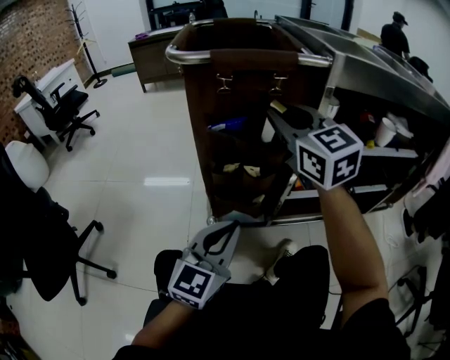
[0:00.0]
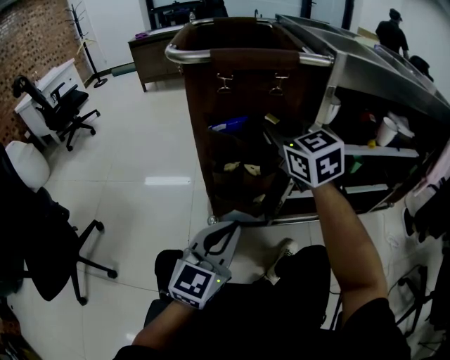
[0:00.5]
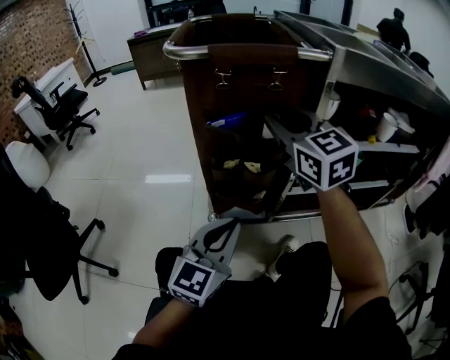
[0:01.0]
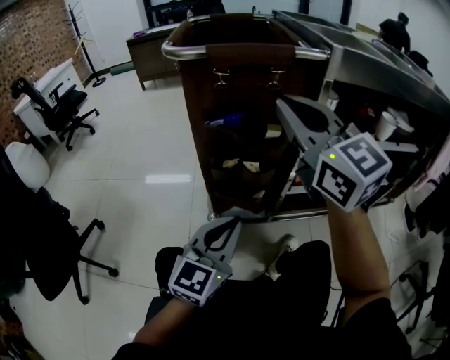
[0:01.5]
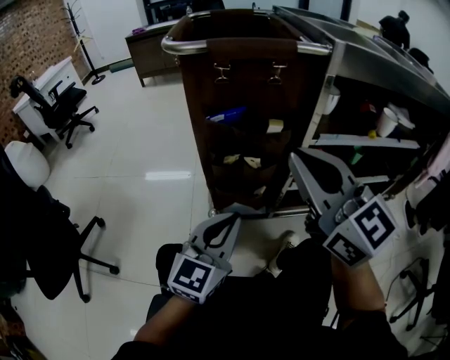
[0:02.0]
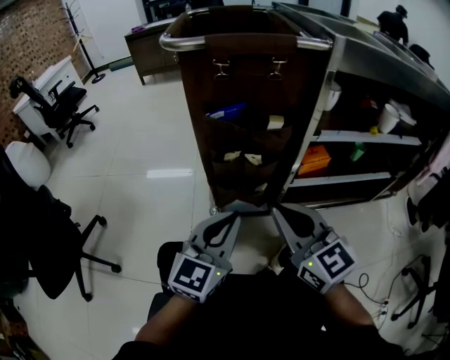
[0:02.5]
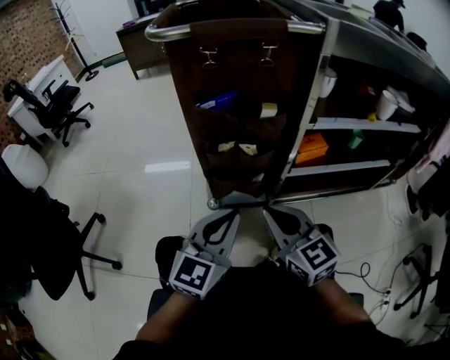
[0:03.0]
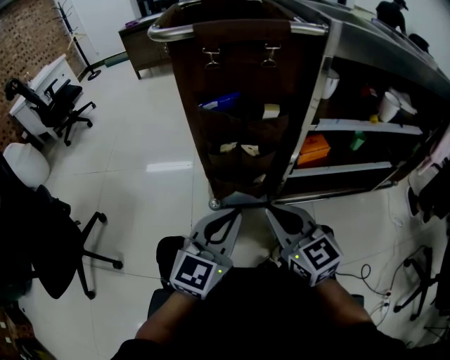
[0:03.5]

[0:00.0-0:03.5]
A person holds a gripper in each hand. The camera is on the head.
0:00.0 to 0:02.0: The right gripper is displaced backward by about 15 cm.
0:02.0 to 0:03.5: The right gripper shifts some 20 cm downward.

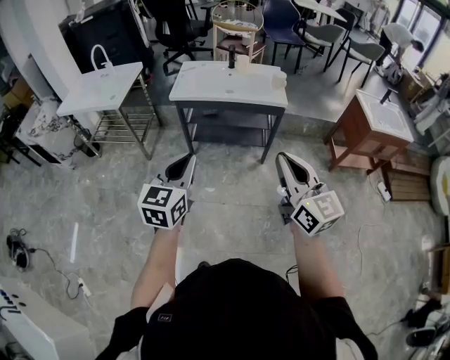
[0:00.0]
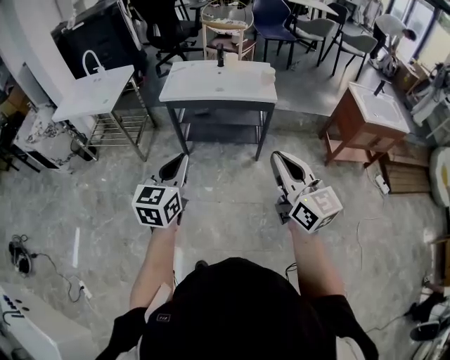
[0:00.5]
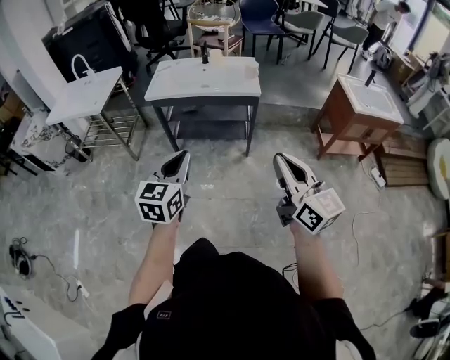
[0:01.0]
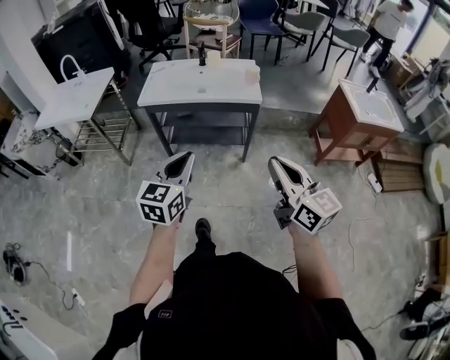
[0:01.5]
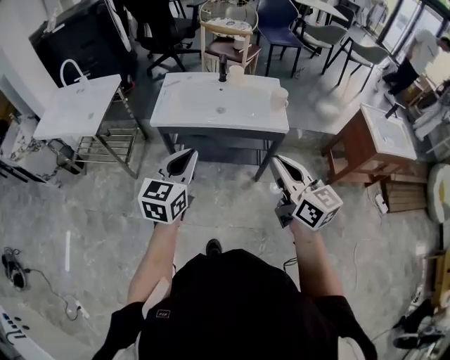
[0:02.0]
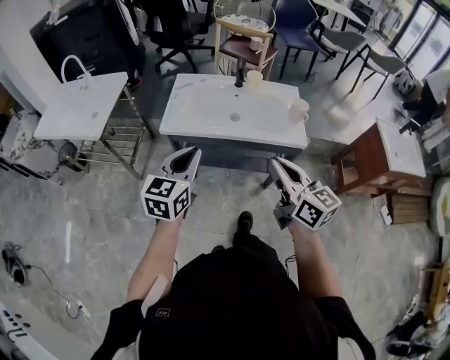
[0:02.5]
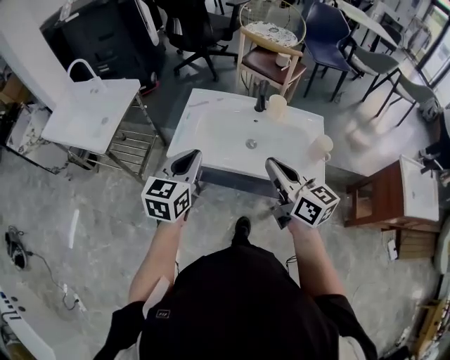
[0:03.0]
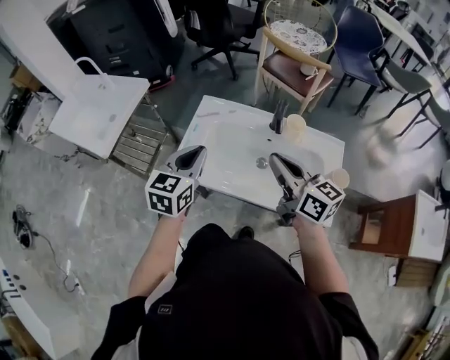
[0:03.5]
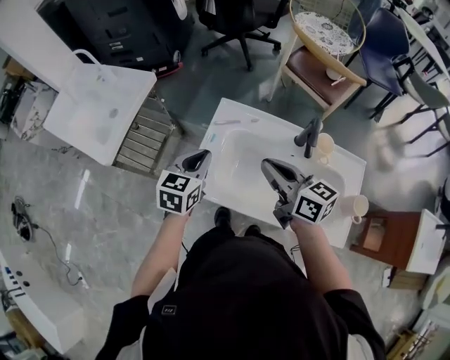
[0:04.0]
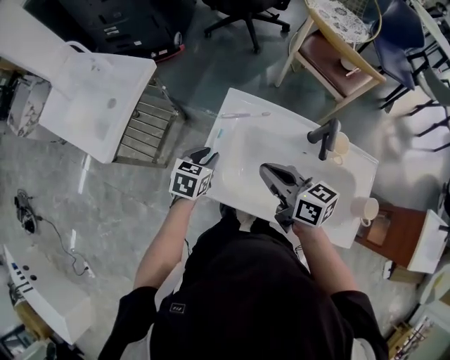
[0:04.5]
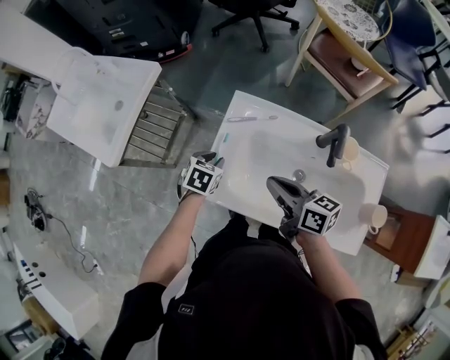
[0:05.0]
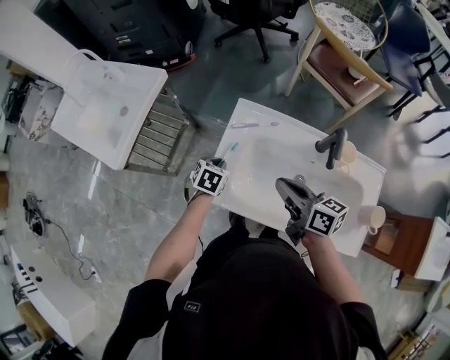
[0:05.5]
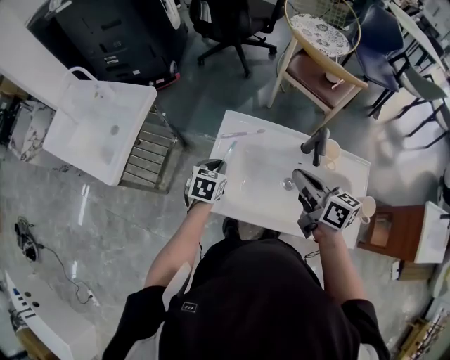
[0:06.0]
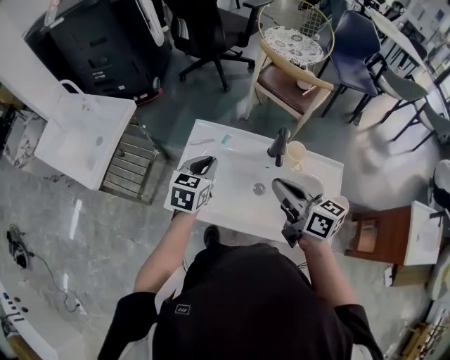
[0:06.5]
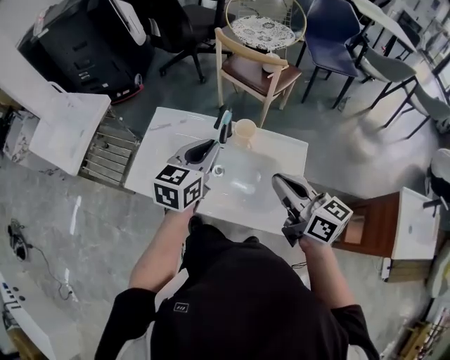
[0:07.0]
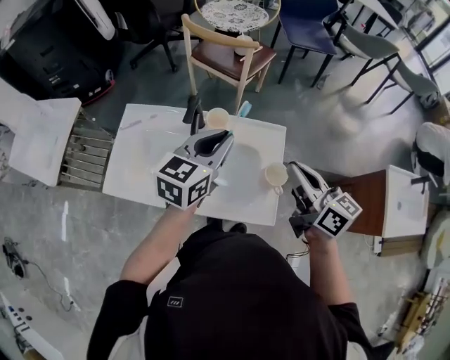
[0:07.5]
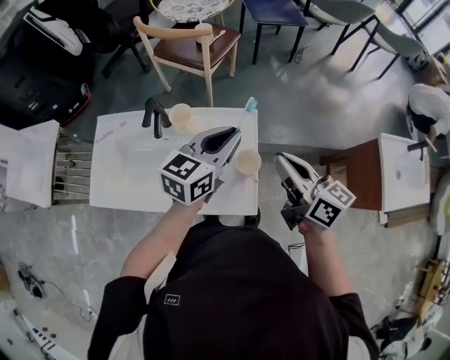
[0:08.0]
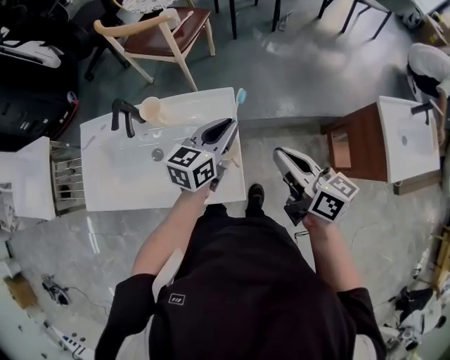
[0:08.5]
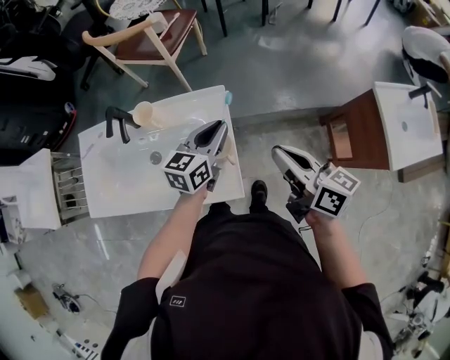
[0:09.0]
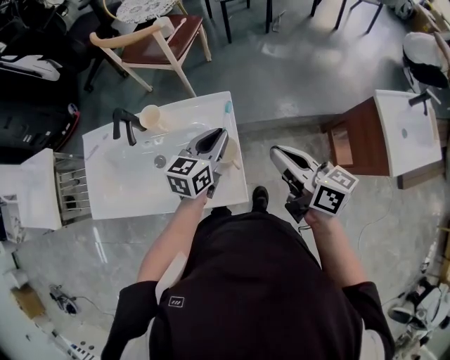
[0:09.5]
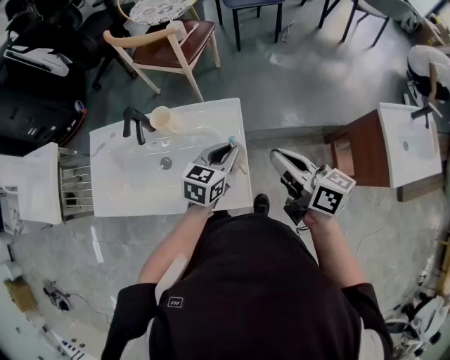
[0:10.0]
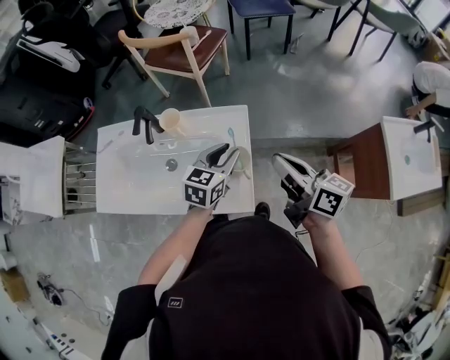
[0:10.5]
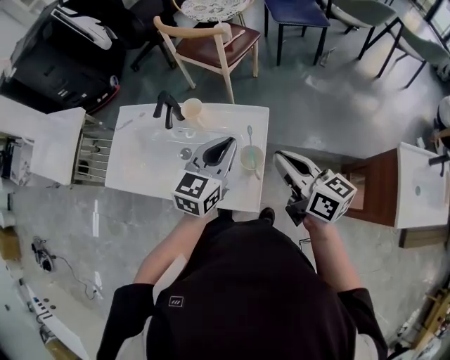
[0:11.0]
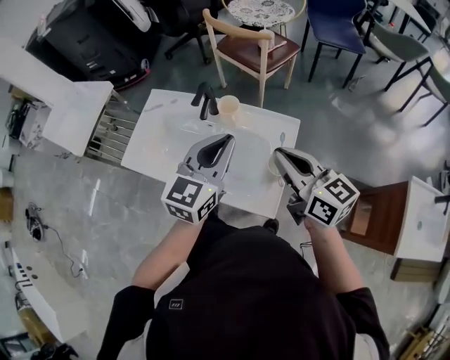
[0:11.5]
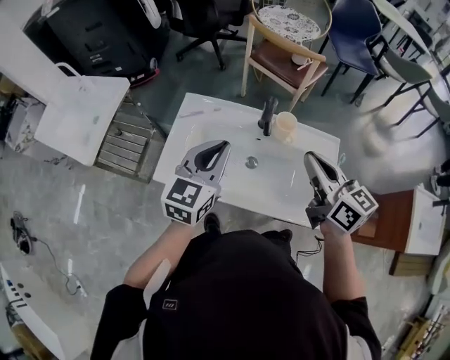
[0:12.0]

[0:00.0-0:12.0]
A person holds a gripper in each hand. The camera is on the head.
0:00.0 to 0:02.0: Both grippers travel together forward, roughly 25 cm.
0:02.0 to 0:04.0: The pair of grippers is taken forward, about 60 cm. The left gripper turns by approximately 20 degrees, while the right gripper changes its angle by roughly 30 degrees.
0:04.0 to 0:06.0: The left gripper is displaced downward by roughly 10 cm, while the right gripper is displaced to the right by approximately 5 cm, and reaches roughly 10 cm downward, then returns.
0:06.0 to 0:08.0: The pair of grippers is taken to the right, about 50 cm. The left gripper tips its fingers upward by about 30 degrees.
0:08.0 to 0:10.0: The left gripper is displaced downward and to the right by roughly 15 cm, while the right gripper is displaced to the right by some 5 cm.
0:10.0 to 0:12.0: The two grippers go some 35 cm to the left. The right gripper changes its angle by roughly 20 degrees, while the left gripper turns by some 30 degrees.

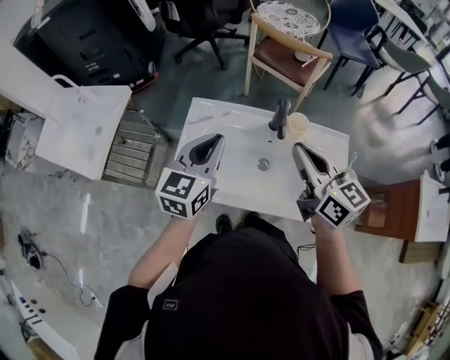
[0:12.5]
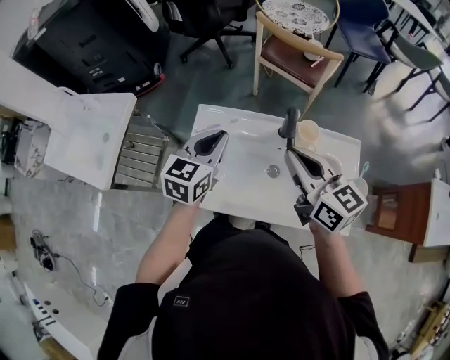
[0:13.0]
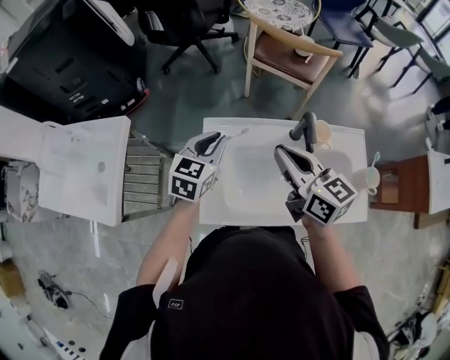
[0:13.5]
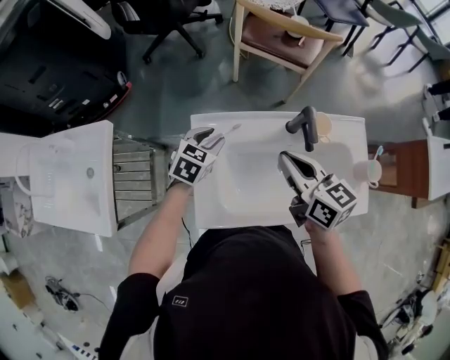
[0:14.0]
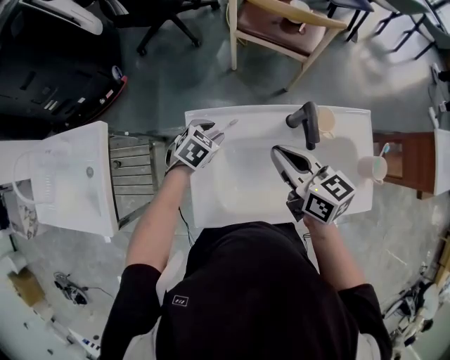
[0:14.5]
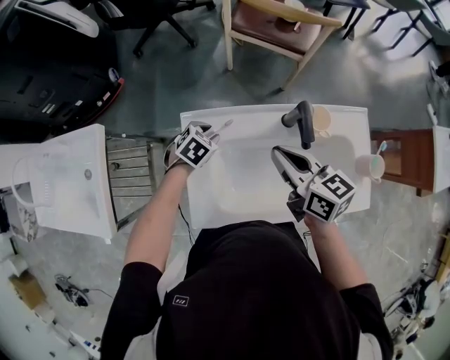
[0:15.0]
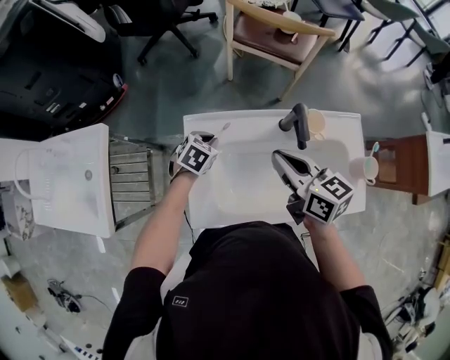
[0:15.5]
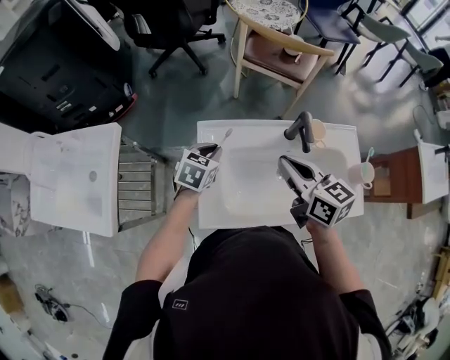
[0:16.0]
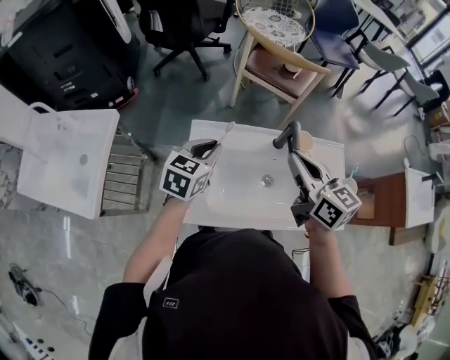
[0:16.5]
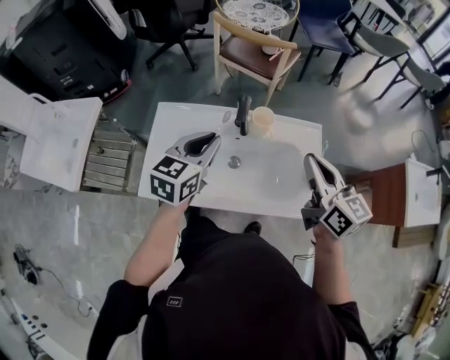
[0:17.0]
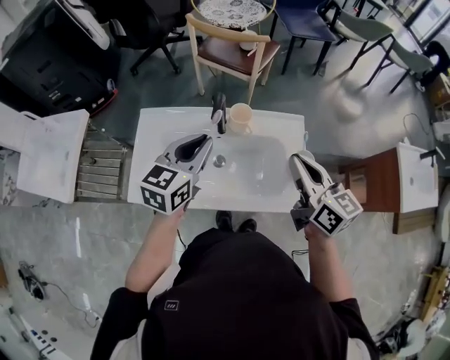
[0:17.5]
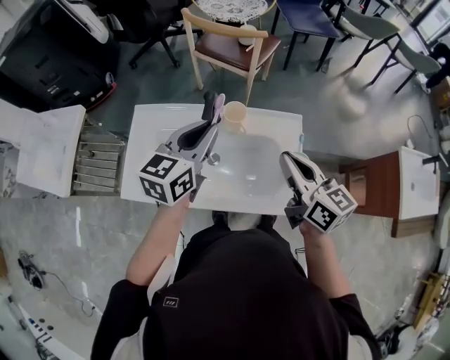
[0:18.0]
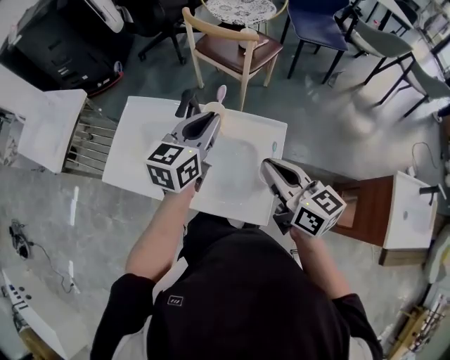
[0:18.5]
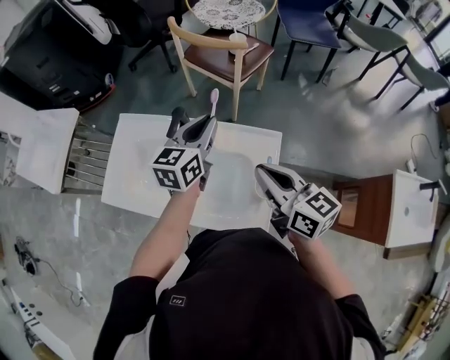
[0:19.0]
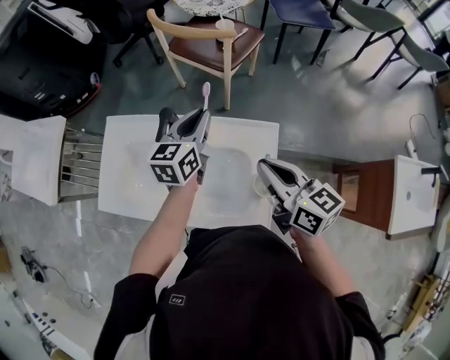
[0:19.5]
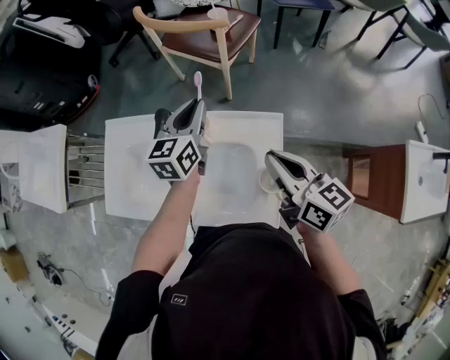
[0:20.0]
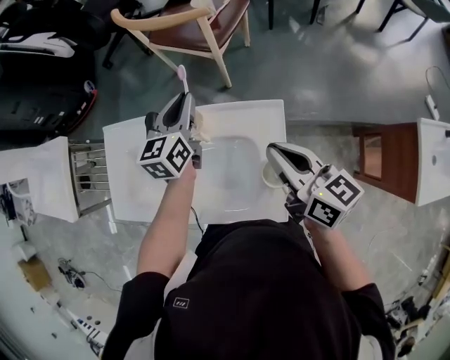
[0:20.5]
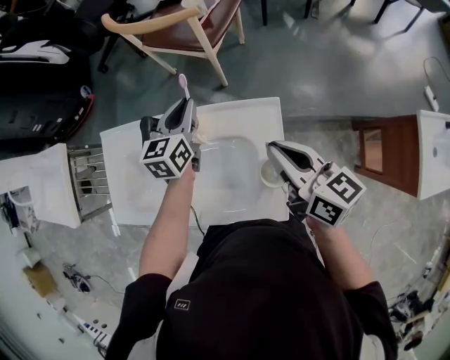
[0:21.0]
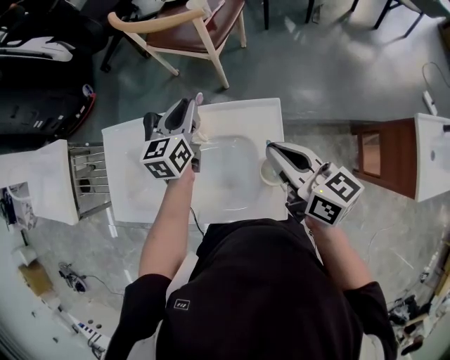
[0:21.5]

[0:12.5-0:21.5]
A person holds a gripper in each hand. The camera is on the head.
0:12.5 to 0:14.5: The left gripper is displaced downward and forward by about 30 cm, angles its fingers downward, by some 40 degrees, and opens its fingers. The right gripper is displaced to the left, forward and downward by roughly 20 cm.
0:14.5 to 0:17.0: The right gripper is displaced to the right by about 30 cm; the left gripper is displaced upward, to the right and backward by some 35 cm, tips its fingers upward by some 40 degrees, and closes.
0:17.0 to 0:19.5: The right gripper moves to the right and forward, roughly 15 cm. The left gripper shifts about 25 cm to the right and forward.
0:19.5 to 0:21.5: The left gripper shifts some 5 cm downward.

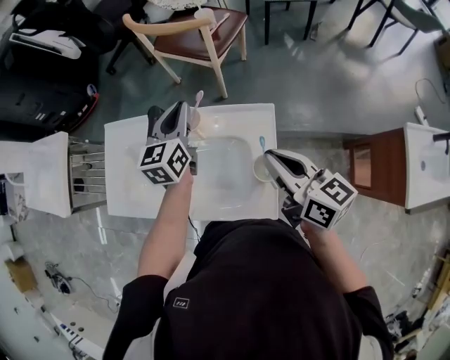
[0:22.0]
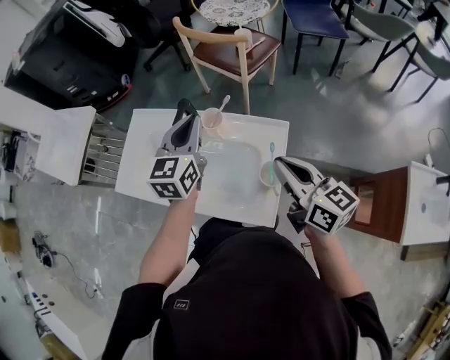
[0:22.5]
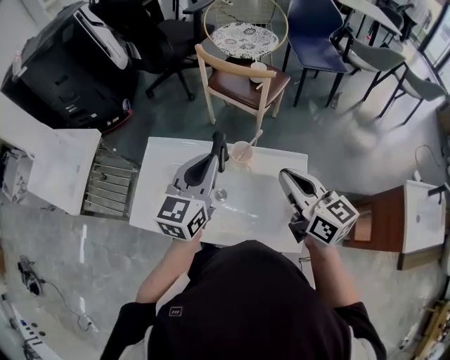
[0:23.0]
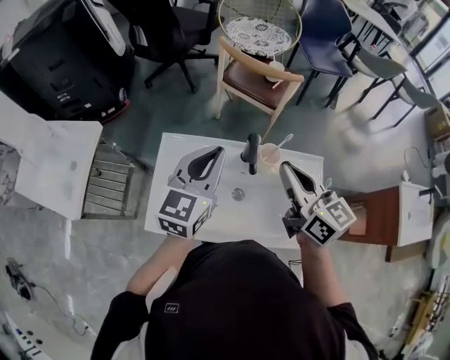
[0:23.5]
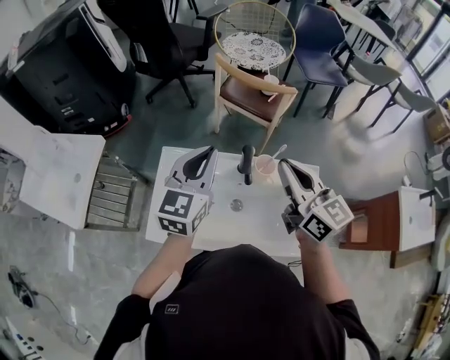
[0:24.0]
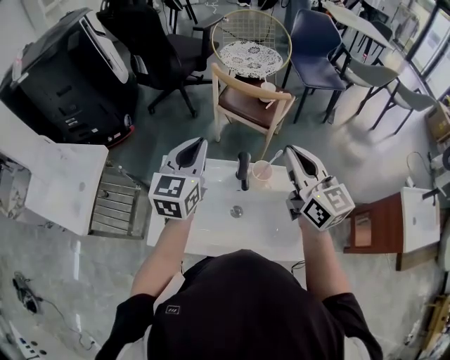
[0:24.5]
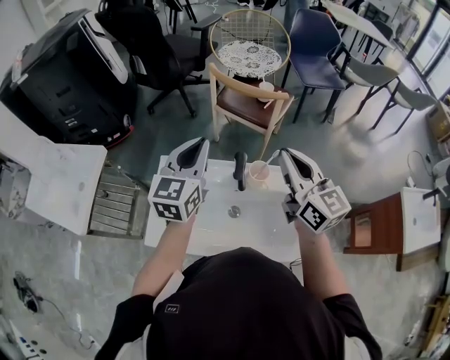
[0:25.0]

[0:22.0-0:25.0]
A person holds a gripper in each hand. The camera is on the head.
0:22.0 to 0:23.5: The right gripper heads to the left, covering roughly 25 cm. Meanwhile the left gripper is displaced to the left and upward by approximately 25 cm.
0:23.5 to 0:25.0: The right gripper is displaced to the right and upward by about 10 cm. Meanwhile the left gripper shifts about 5 cm forward.
